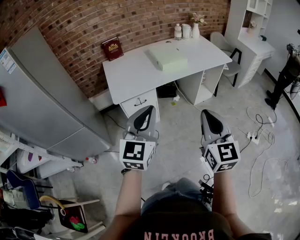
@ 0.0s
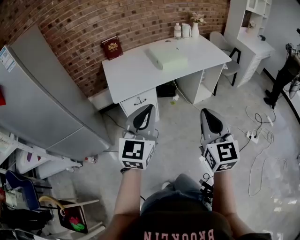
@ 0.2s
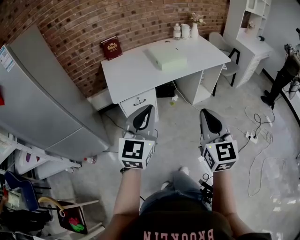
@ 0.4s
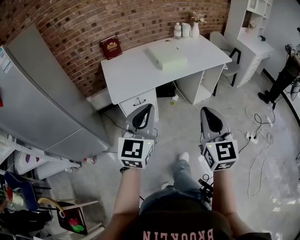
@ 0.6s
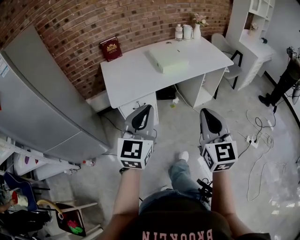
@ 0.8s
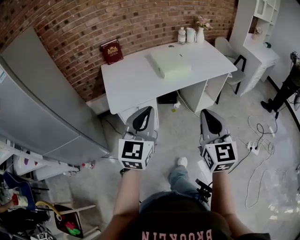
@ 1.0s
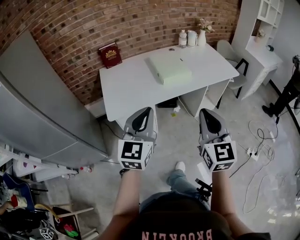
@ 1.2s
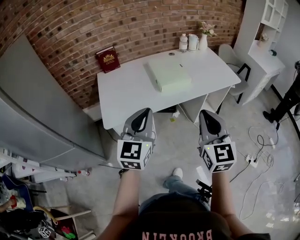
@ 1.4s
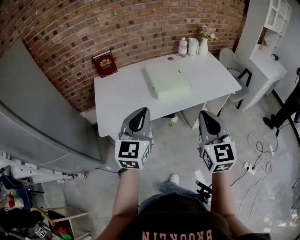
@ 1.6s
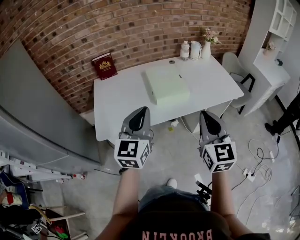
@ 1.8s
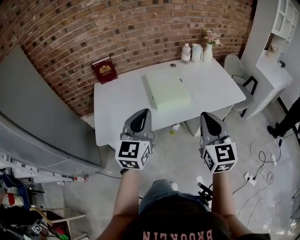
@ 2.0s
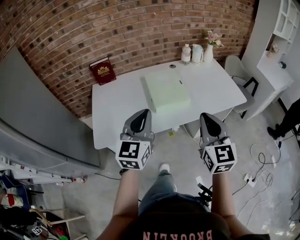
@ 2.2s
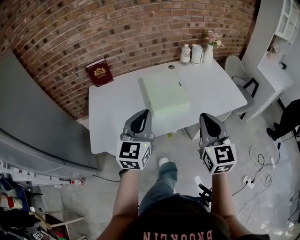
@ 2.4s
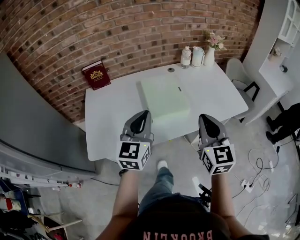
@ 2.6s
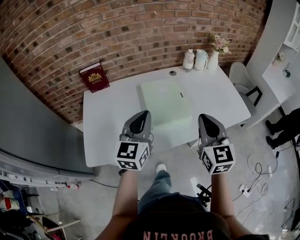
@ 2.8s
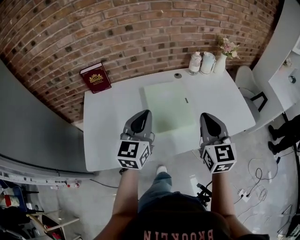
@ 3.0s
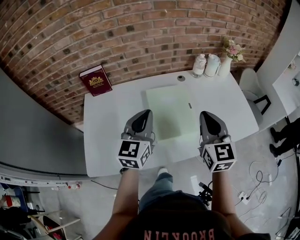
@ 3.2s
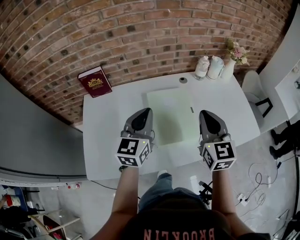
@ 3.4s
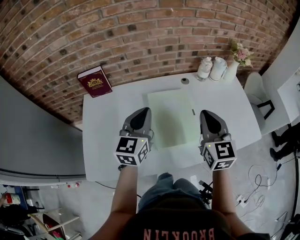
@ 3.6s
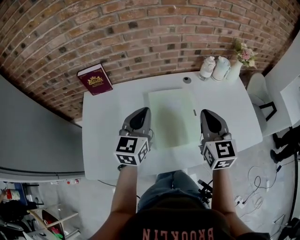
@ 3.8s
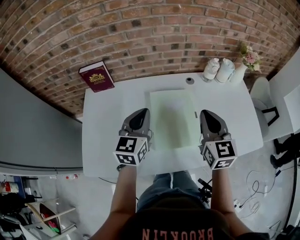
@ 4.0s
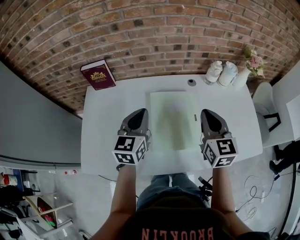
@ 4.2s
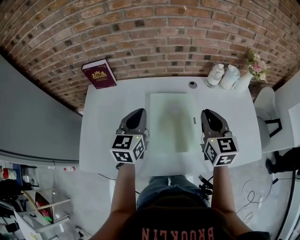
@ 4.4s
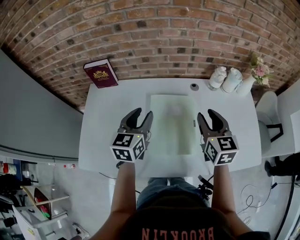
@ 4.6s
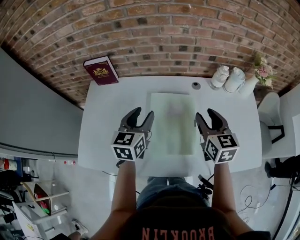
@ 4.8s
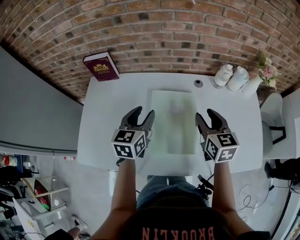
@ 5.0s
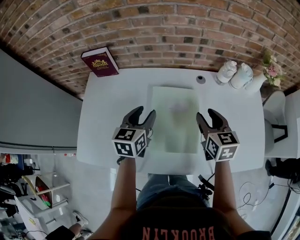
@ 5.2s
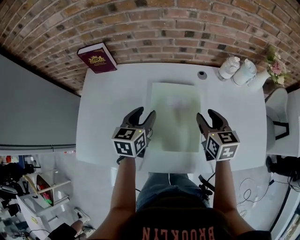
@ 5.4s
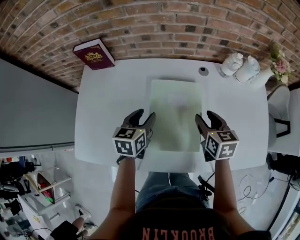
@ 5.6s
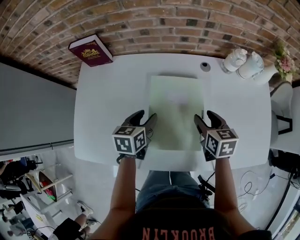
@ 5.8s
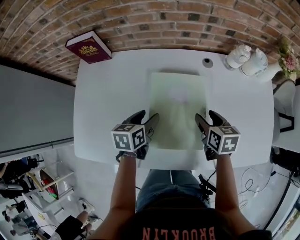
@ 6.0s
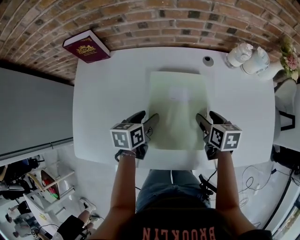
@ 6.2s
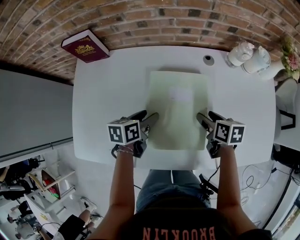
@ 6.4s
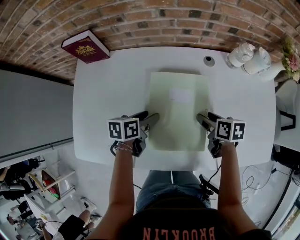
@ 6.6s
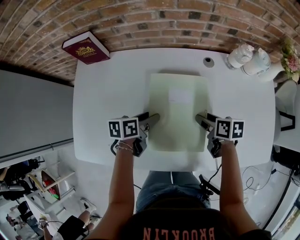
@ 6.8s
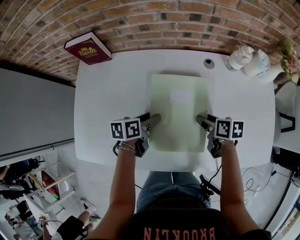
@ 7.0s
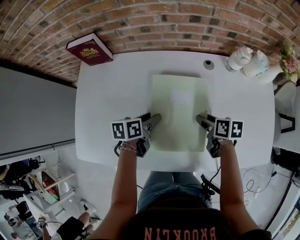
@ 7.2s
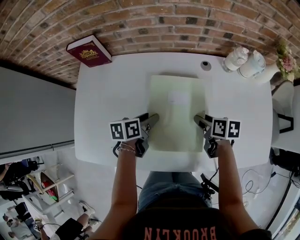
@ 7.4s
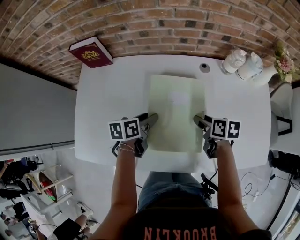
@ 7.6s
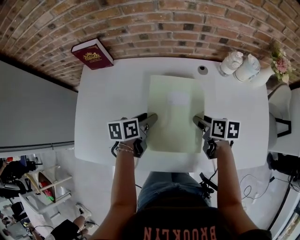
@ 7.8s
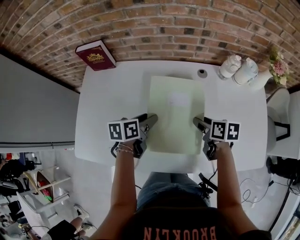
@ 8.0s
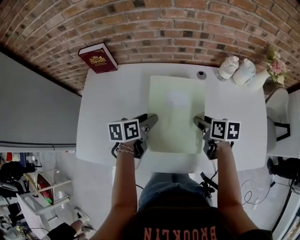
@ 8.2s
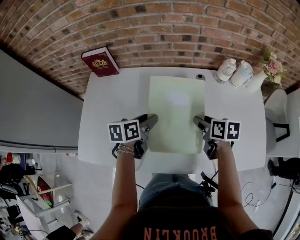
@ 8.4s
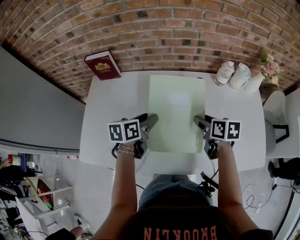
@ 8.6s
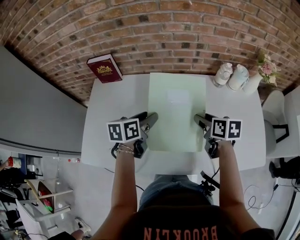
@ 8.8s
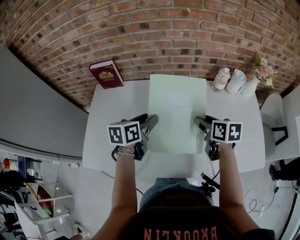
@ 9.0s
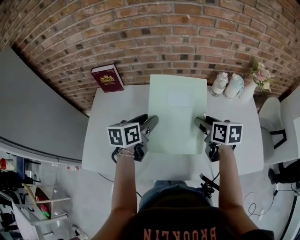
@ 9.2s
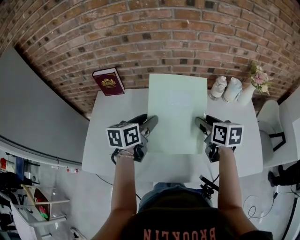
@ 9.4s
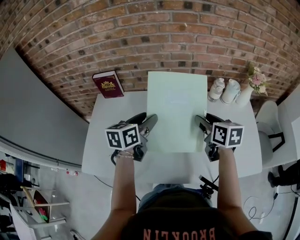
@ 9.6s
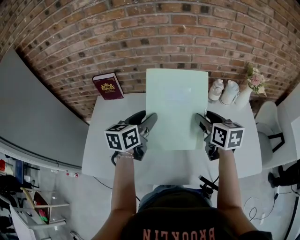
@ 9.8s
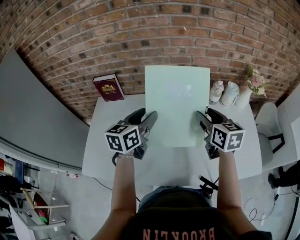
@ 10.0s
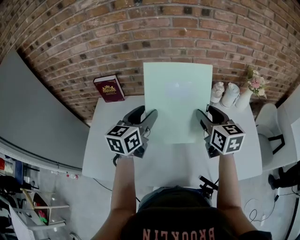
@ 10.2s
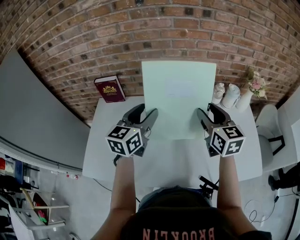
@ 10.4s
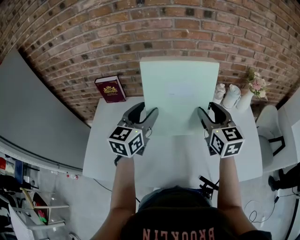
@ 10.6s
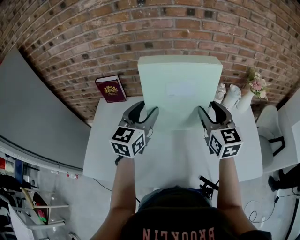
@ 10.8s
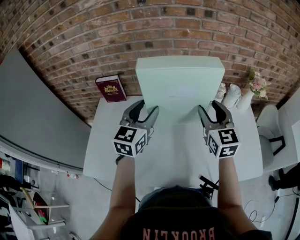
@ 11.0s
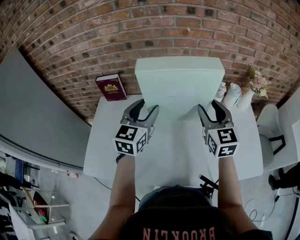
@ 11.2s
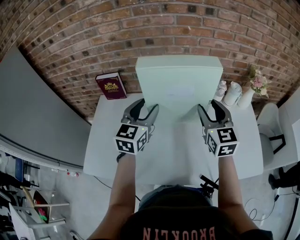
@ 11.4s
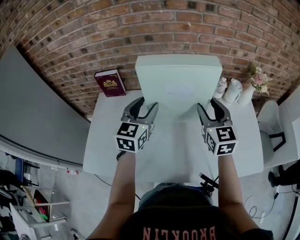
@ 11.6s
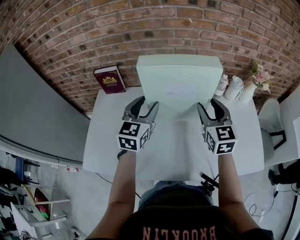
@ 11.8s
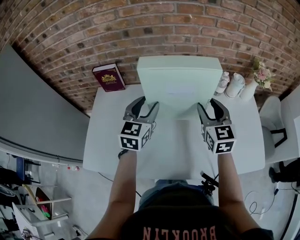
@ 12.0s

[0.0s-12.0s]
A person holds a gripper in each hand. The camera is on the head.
0.0s to 1.6s: The two grippers go about 30 cm forward.
1.6s to 3.0s: Both grippers travel together forward, about 30 cm.
3.0s to 4.4s: The right gripper heads forward, covering roughly 20 cm. Meanwhile the left gripper travels forward and downward by some 15 cm.
4.4s to 6.0s: The grippers both shift downward by about 20 cm. The left gripper changes its angle by some 40 degrees, and opens up; the right gripper points its fingers roughly 30 degrees further downward, and opens.
7.6s to 9.0s: The two grippers go about 15 cm upward.
9.0s to 10.4s: The grippers both shift upward by roughly 15 cm. The right gripper swivels approximately 40 degrees; the left gripper turns by some 30 degrees.
10.4s to 12.0s: There are only small adjustments of the grippers.

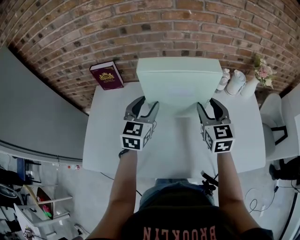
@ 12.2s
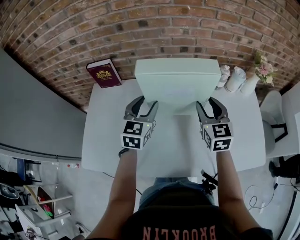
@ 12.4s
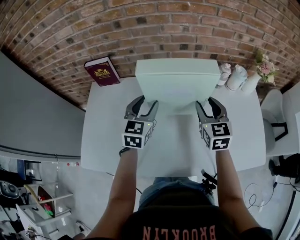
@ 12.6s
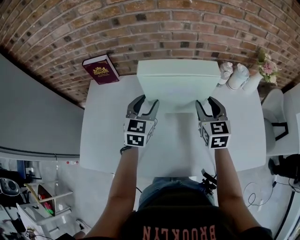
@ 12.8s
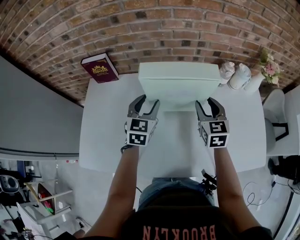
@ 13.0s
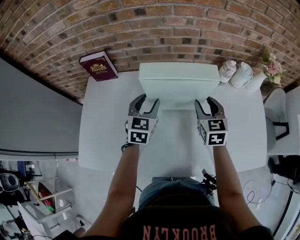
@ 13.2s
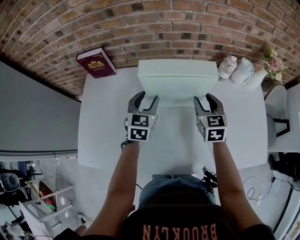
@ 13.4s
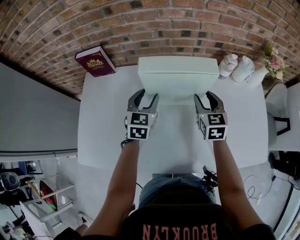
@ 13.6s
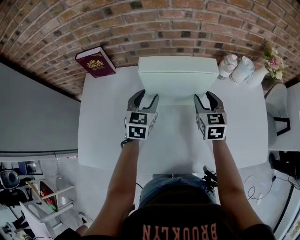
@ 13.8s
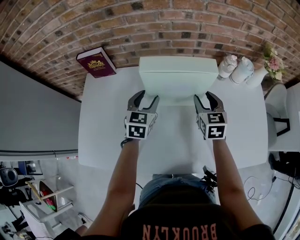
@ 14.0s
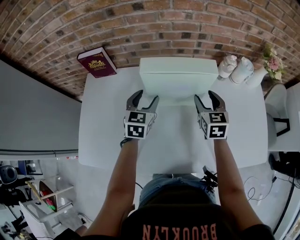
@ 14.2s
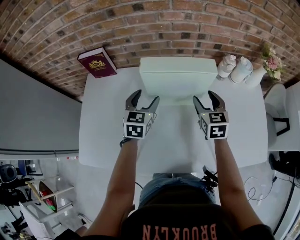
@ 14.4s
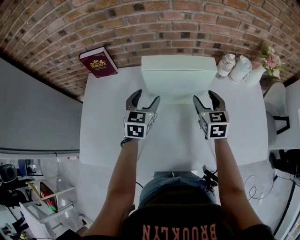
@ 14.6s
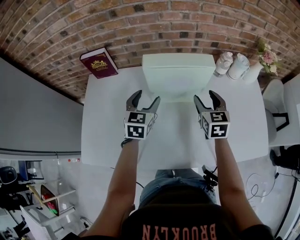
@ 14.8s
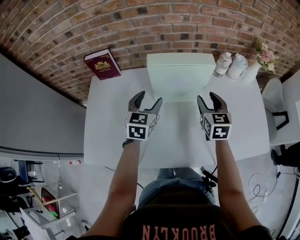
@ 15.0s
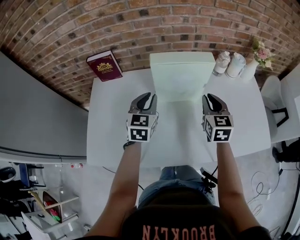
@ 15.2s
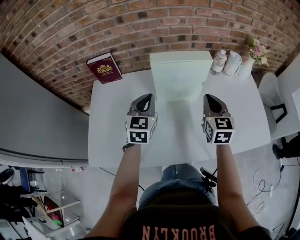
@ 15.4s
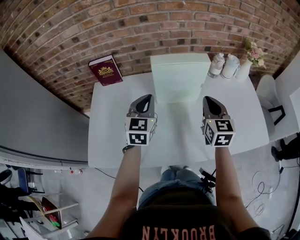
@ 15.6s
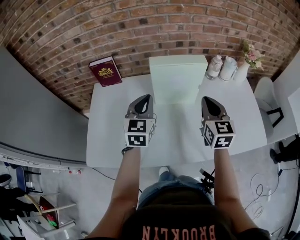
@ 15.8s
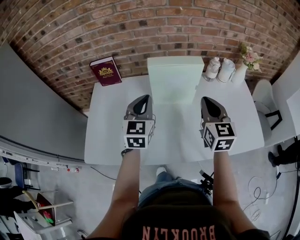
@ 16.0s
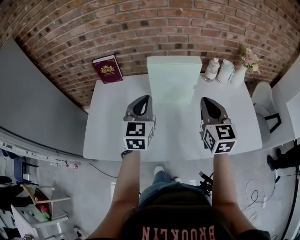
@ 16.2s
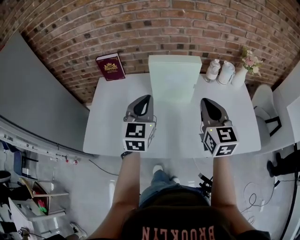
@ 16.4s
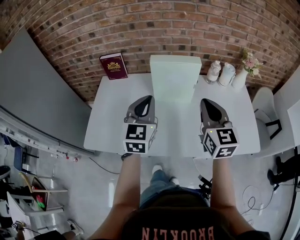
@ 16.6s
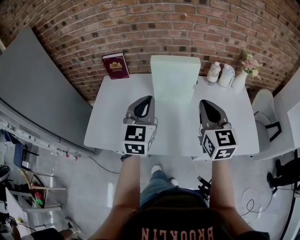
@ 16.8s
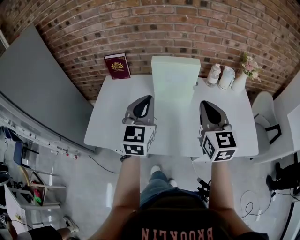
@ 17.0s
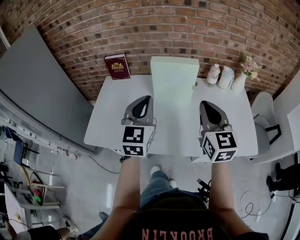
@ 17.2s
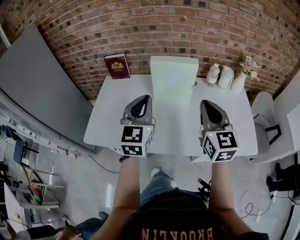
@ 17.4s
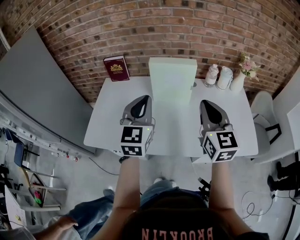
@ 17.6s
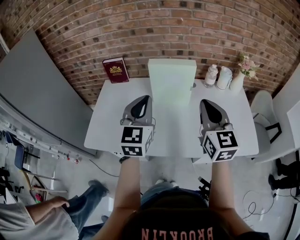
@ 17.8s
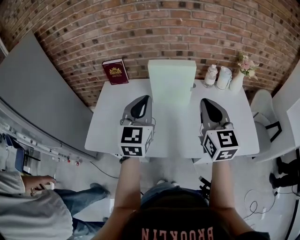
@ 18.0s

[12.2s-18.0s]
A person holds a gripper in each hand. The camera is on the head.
12.2s to 13.6s: The left gripper moves downward, roughly 10 cm. The right gripper goes some 15 cm downward and forward.
13.6s to 15.0s: The left gripper shifts by approximately 5 cm; the right gripper heads backward, covering about 5 cm.
15.0s to 16.6s: The grippers both shift upward and backward by about 20 cm. The left gripper closes; the right gripper rotates about 20 degrees, and closes up.
16.6s to 18.0s: The left gripper moves some 5 cm.

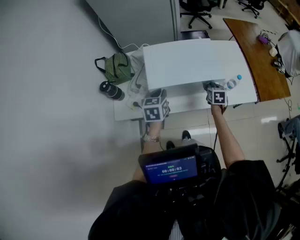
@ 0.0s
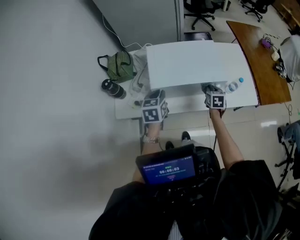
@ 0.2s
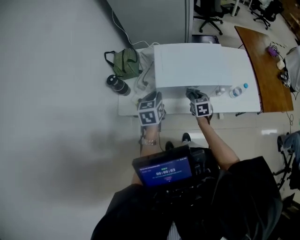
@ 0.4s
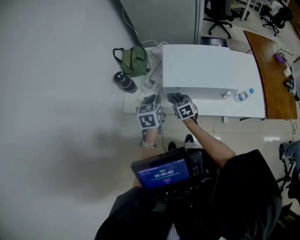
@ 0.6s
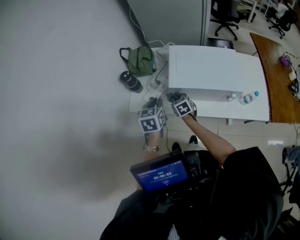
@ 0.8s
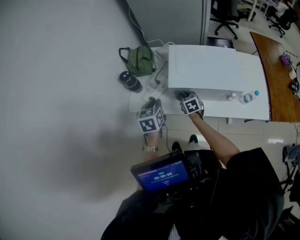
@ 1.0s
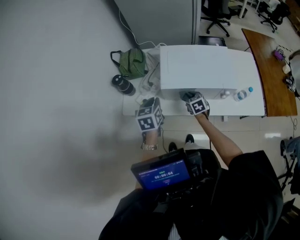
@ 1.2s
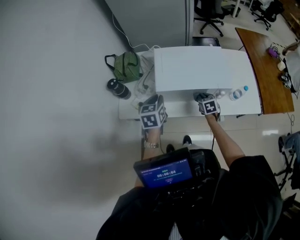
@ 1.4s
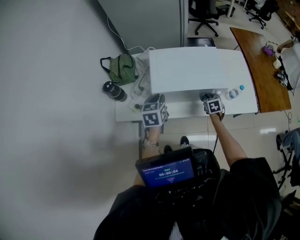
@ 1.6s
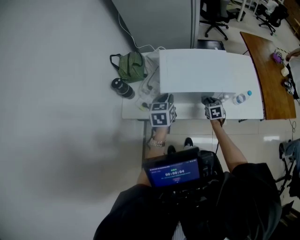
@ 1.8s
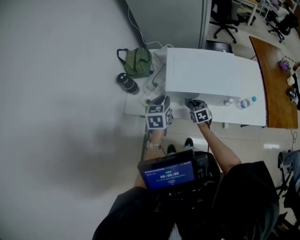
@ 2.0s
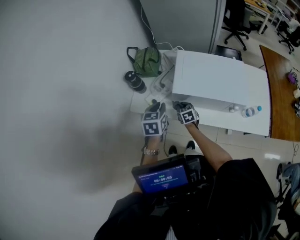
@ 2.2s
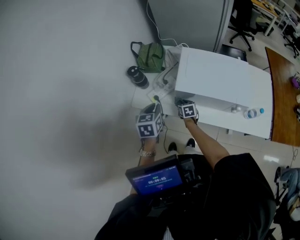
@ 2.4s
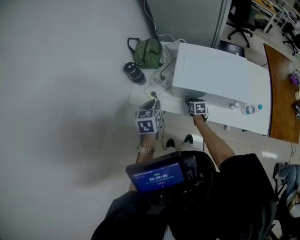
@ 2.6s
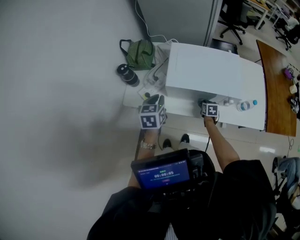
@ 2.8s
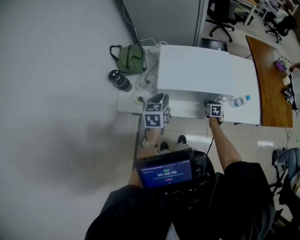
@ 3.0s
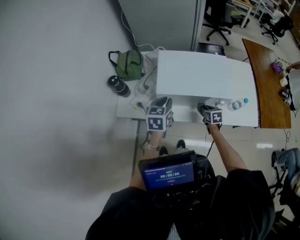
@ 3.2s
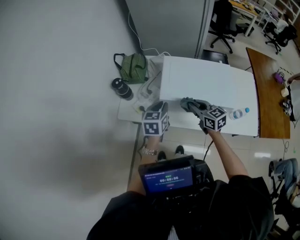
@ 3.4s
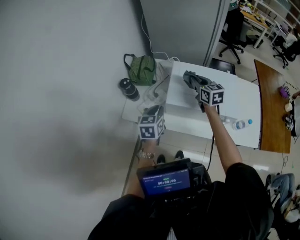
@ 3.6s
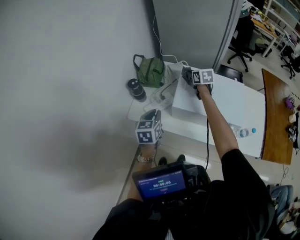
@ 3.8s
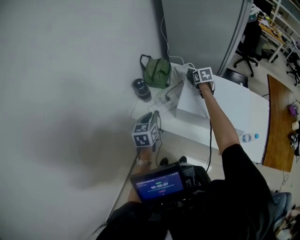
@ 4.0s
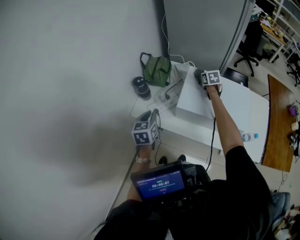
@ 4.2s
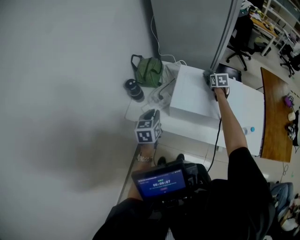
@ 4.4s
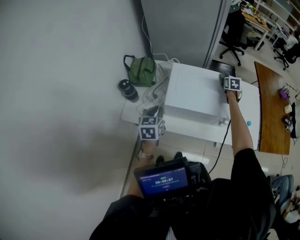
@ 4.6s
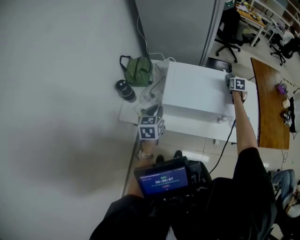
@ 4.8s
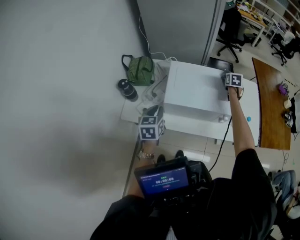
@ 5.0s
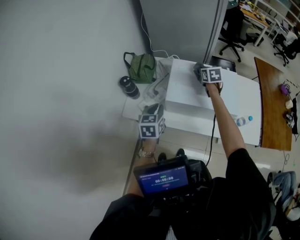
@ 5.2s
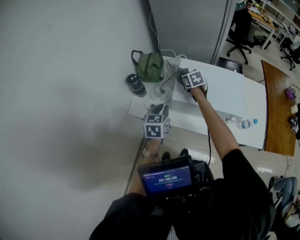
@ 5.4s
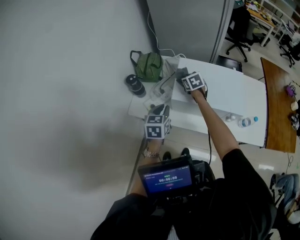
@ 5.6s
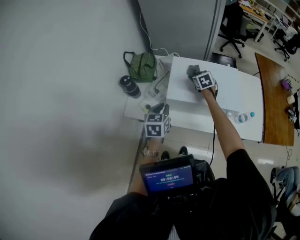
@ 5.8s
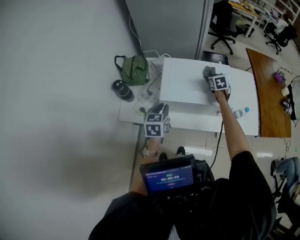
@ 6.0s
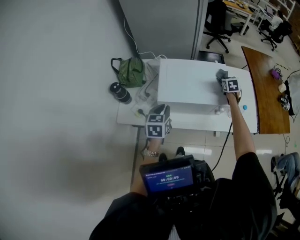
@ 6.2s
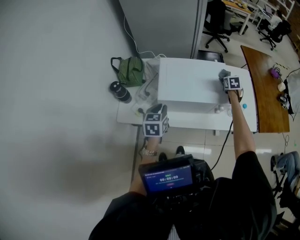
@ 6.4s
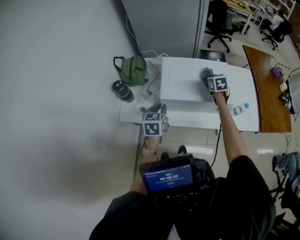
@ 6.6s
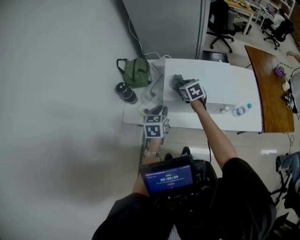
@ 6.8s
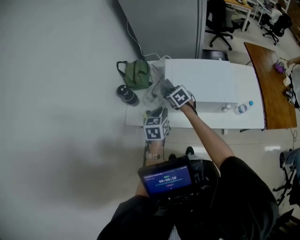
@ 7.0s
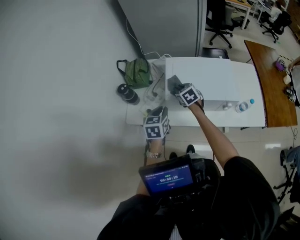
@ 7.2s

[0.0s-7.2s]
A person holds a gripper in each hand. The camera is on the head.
0.0s to 1.4s: The right gripper changes its angle by approximately 20 degrees.
1.4s to 2.8s: The right gripper goes roughly 10 cm downward.
2.8s to 4.4s: The right gripper moves about 35 cm.
4.4s to 5.8s: The left gripper moves to the right, approximately 5 cm. Meanwhile the right gripper moves left and right over some 40 cm, changing direction 2 times.
